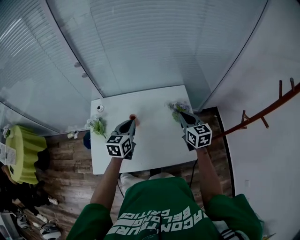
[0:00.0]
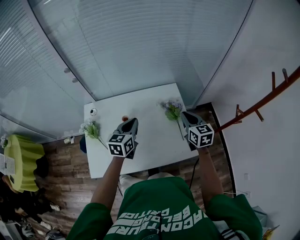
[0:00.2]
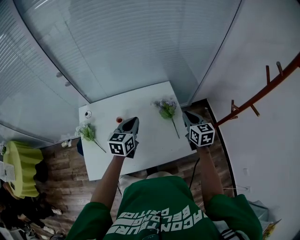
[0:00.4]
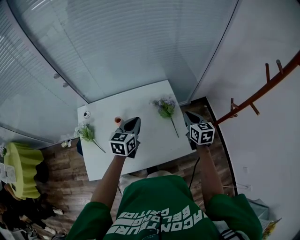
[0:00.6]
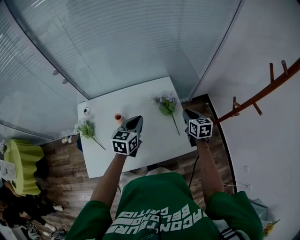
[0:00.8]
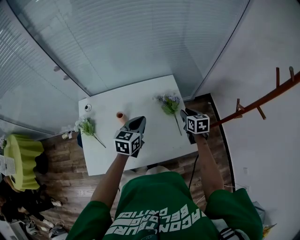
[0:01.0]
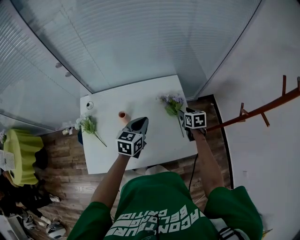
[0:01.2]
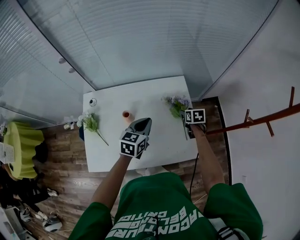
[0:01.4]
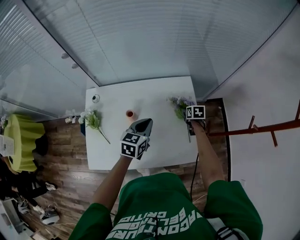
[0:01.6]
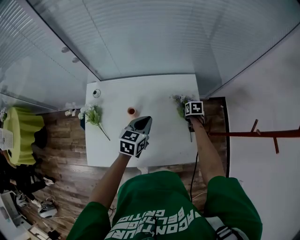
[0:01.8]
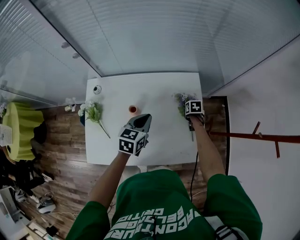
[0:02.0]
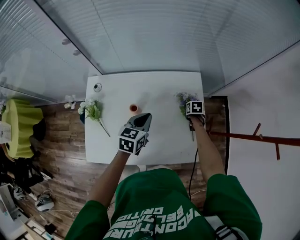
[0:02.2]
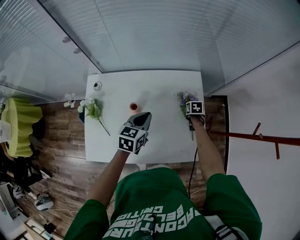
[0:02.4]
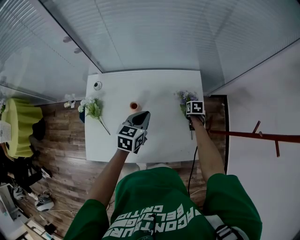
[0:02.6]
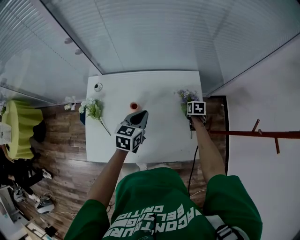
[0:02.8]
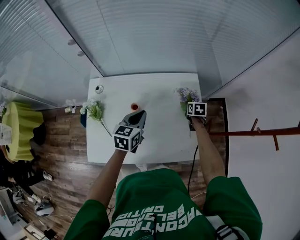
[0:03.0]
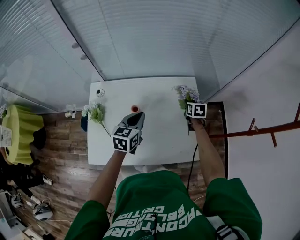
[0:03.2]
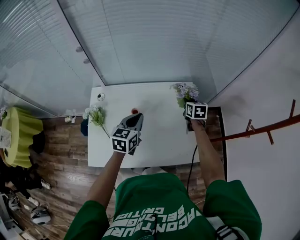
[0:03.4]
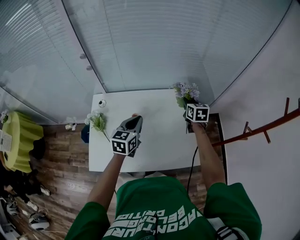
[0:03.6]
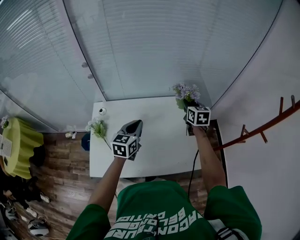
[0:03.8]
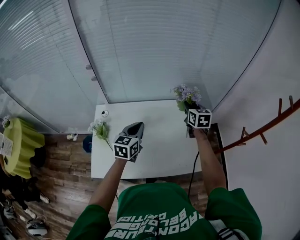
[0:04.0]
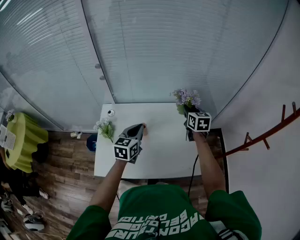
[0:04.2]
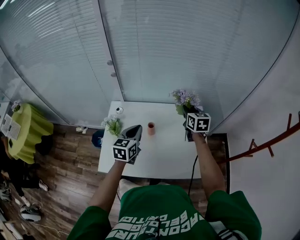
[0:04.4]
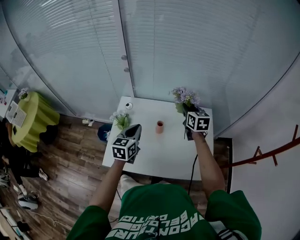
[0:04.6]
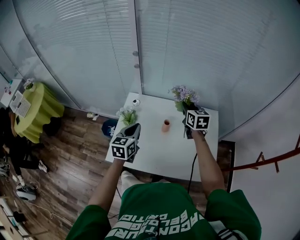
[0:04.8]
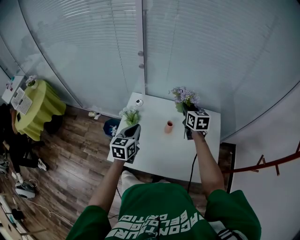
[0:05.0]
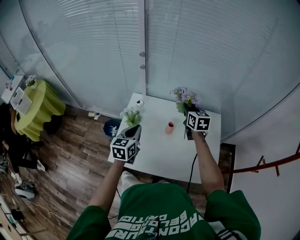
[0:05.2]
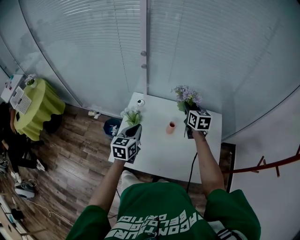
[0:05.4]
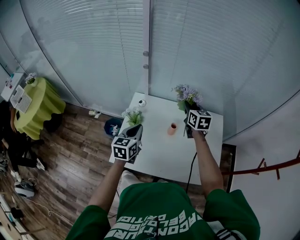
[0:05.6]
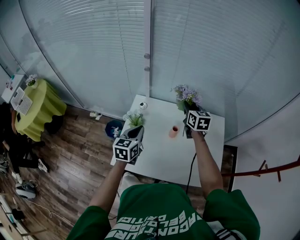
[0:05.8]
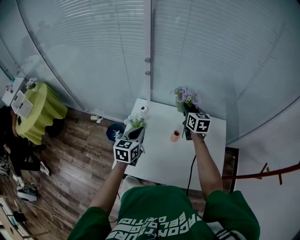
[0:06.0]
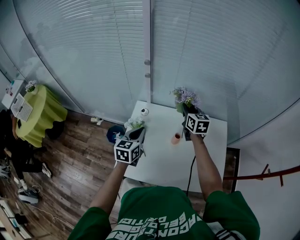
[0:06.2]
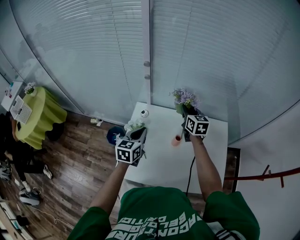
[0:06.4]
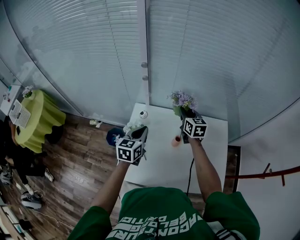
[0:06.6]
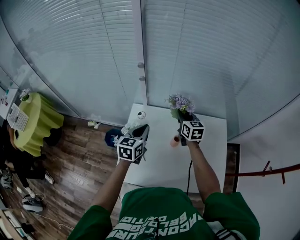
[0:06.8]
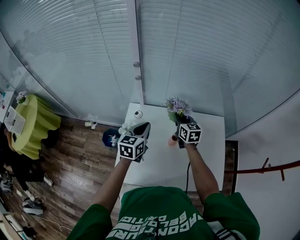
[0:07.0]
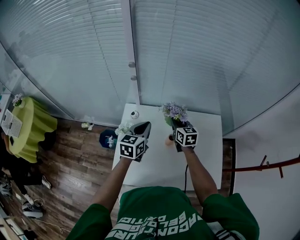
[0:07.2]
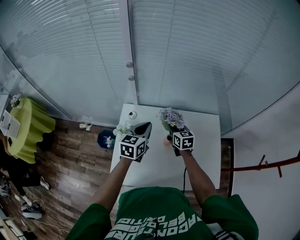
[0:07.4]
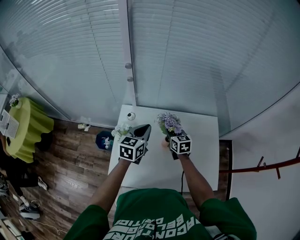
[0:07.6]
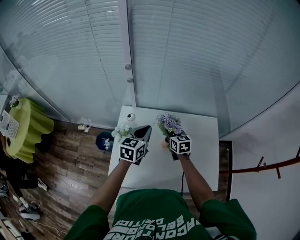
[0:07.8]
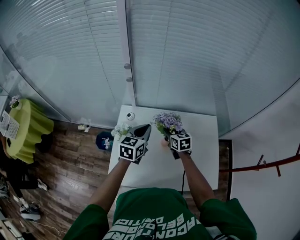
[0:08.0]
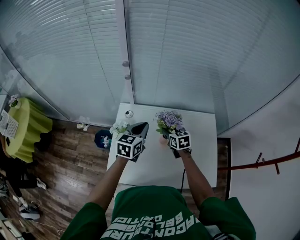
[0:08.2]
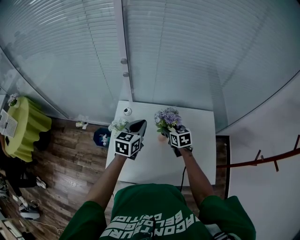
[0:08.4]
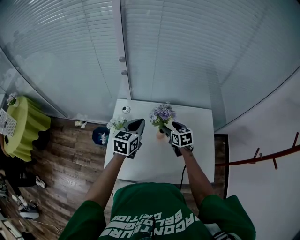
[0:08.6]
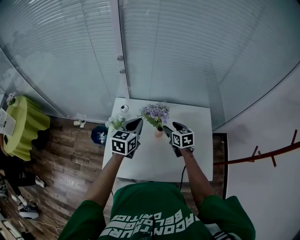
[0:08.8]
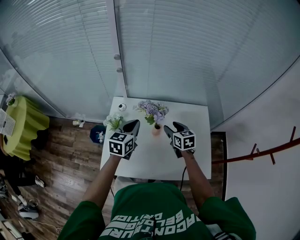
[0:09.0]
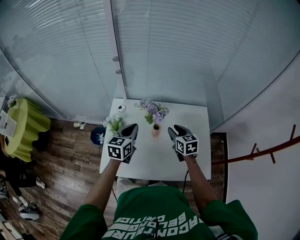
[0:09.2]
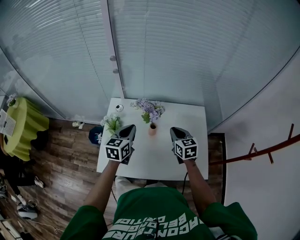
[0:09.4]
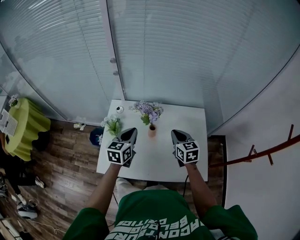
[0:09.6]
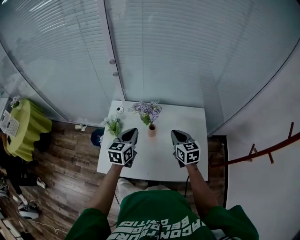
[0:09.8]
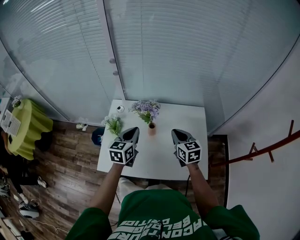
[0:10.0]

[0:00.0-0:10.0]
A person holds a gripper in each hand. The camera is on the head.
0:00.0 to 0:01.4: The right gripper heads downward, forward and to the right, covering roughly 25 cm, angles its fingers downward, by some 30 degrees, and opens, while the left gripper moves to the right, about 10 cm.
0:01.4 to 0:02.8: The right gripper heads downward, covering roughly 5 cm, and closes its fingers; the left gripper moves to the left, about 5 cm.
0:02.8 to 0:04.2: The right gripper shifts roughly 30 cm upward, and angles its fingers upward, by approximately 40 degrees, while the left gripper is displaced upward, to the left and backward by roughly 15 cm.
0:04.2 to 0:05.8: The two grippers go roughly 20 cm to the left.
0:05.8 to 0:07.2: The right gripper moves downward, approximately 10 cm. The left gripper goes some 10 cm forward and to the right.
0:07.2 to 0:08.6: The right gripper travels backward by roughly 5 cm, and opens up.
0:08.6 to 0:10.0: The left gripper shifts some 10 cm backward and to the right. The right gripper moves backward, upward and to the right, roughly 20 cm, and closes up.

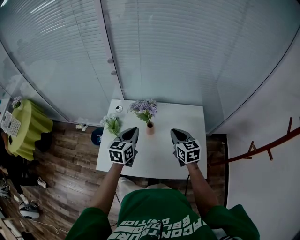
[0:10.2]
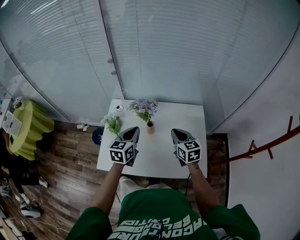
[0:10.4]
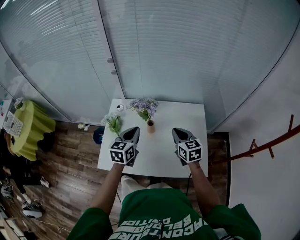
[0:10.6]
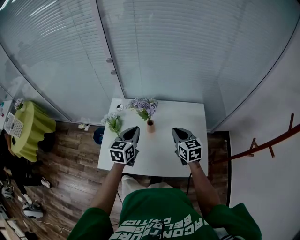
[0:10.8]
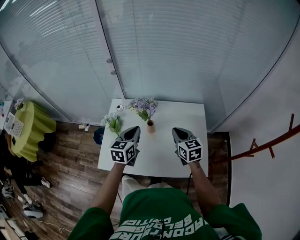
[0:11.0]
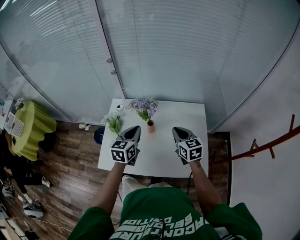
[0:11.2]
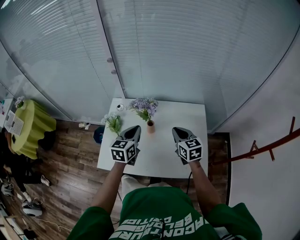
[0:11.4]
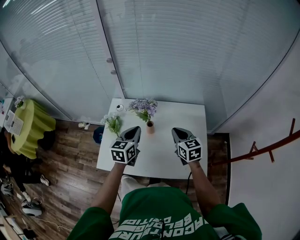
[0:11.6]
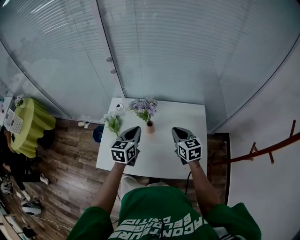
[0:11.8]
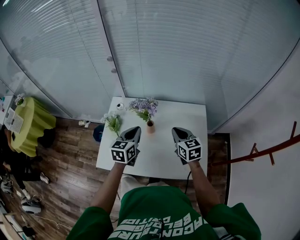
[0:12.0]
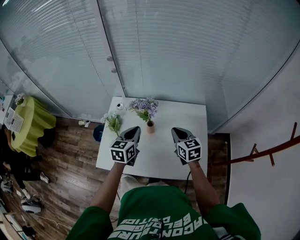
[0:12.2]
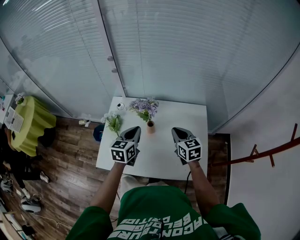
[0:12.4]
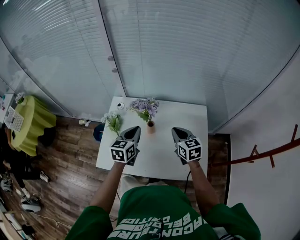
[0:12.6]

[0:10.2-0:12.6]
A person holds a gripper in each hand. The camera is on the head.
0:10.2 to 0:12.6: There are only small adjustments of the grippers.

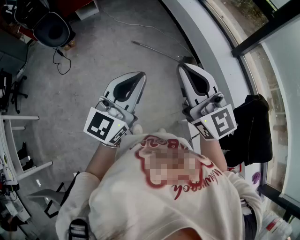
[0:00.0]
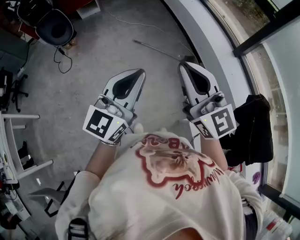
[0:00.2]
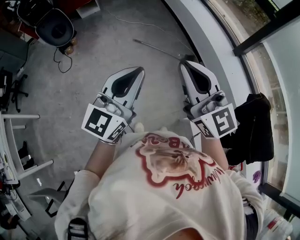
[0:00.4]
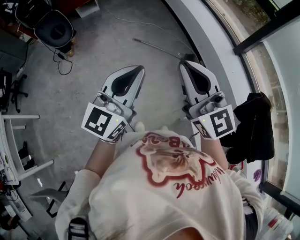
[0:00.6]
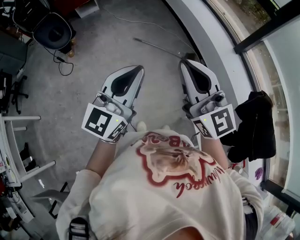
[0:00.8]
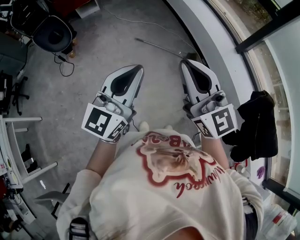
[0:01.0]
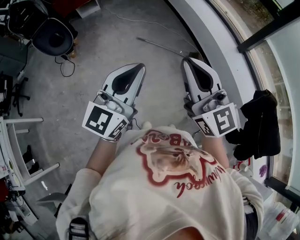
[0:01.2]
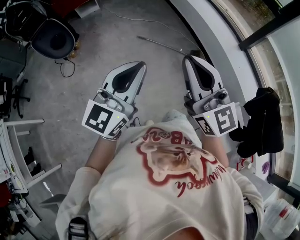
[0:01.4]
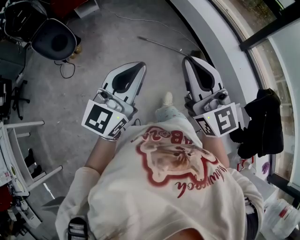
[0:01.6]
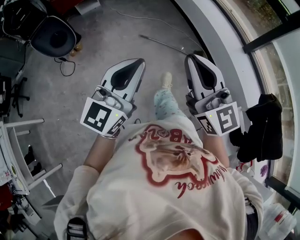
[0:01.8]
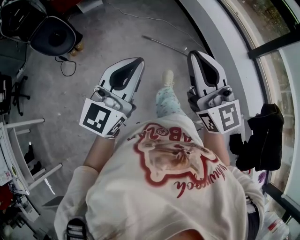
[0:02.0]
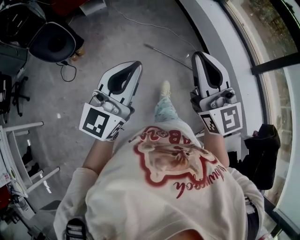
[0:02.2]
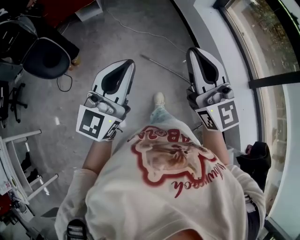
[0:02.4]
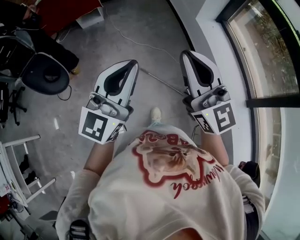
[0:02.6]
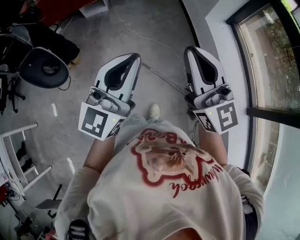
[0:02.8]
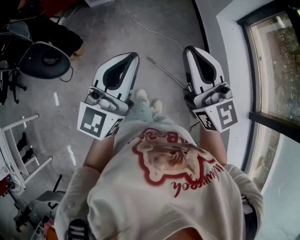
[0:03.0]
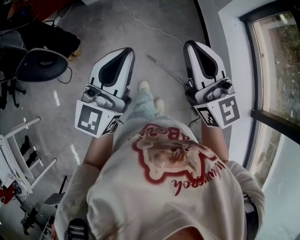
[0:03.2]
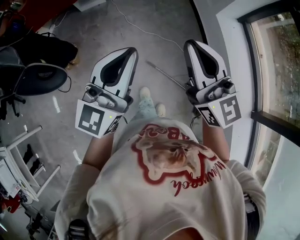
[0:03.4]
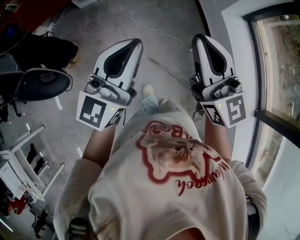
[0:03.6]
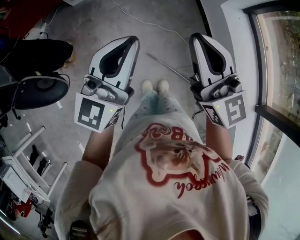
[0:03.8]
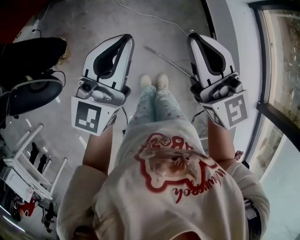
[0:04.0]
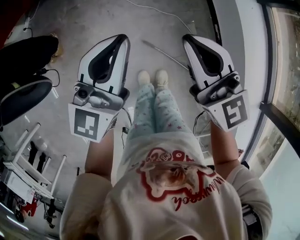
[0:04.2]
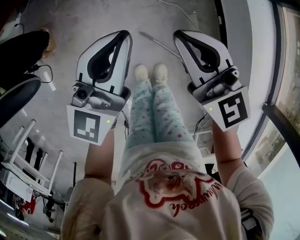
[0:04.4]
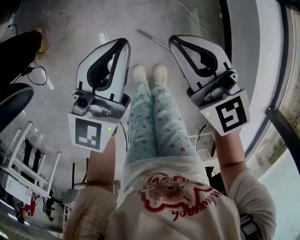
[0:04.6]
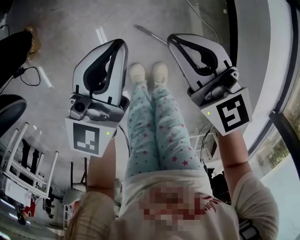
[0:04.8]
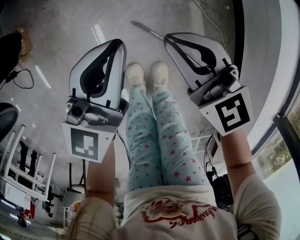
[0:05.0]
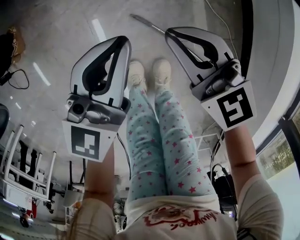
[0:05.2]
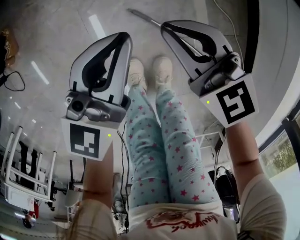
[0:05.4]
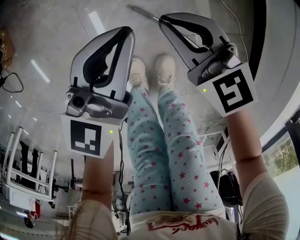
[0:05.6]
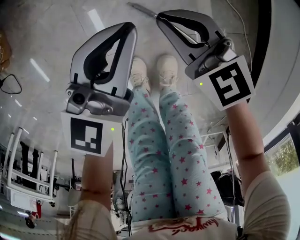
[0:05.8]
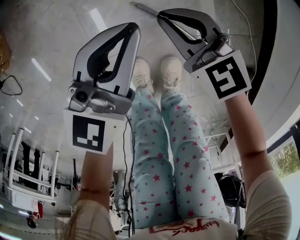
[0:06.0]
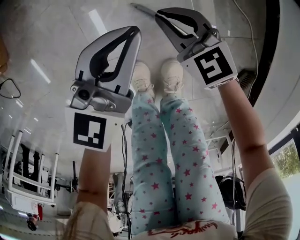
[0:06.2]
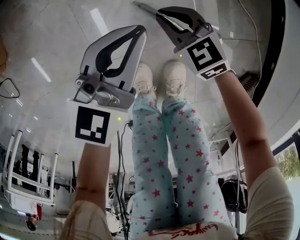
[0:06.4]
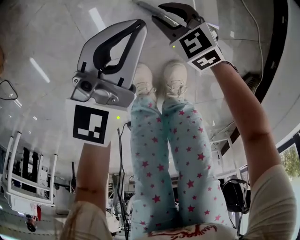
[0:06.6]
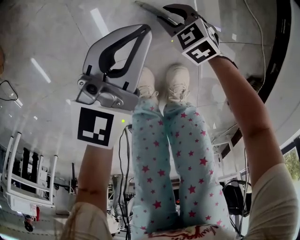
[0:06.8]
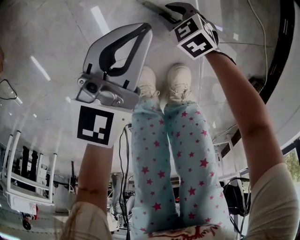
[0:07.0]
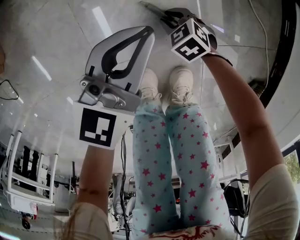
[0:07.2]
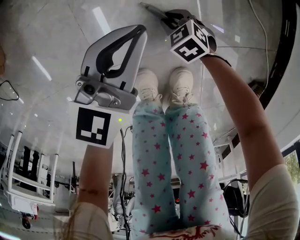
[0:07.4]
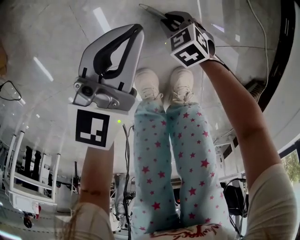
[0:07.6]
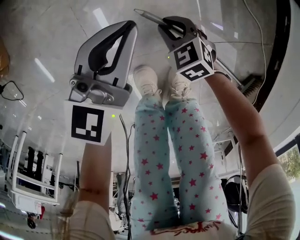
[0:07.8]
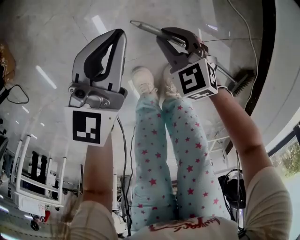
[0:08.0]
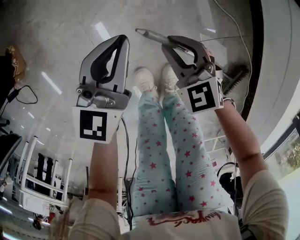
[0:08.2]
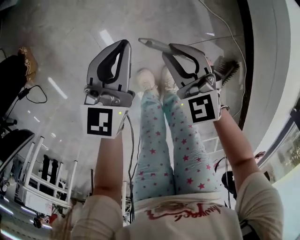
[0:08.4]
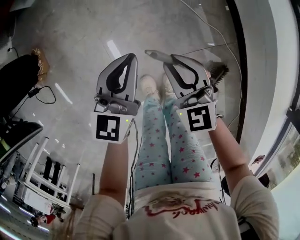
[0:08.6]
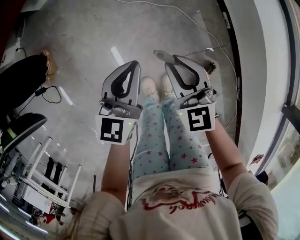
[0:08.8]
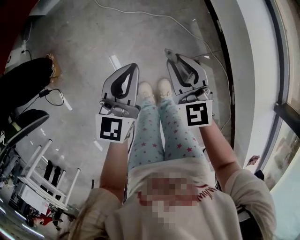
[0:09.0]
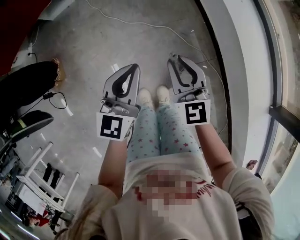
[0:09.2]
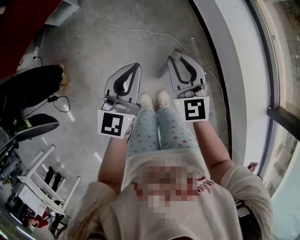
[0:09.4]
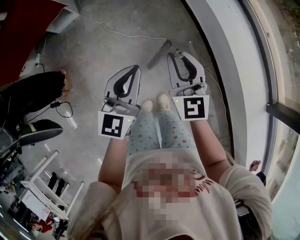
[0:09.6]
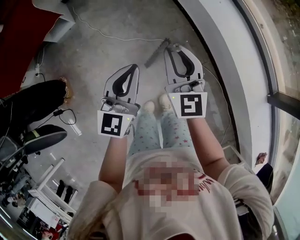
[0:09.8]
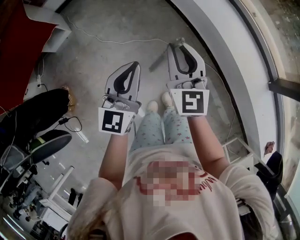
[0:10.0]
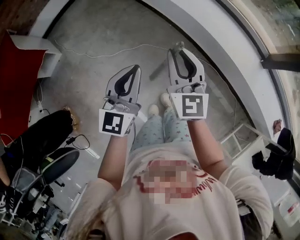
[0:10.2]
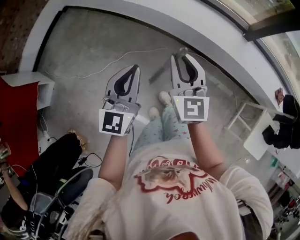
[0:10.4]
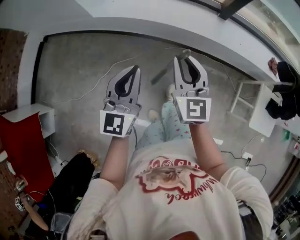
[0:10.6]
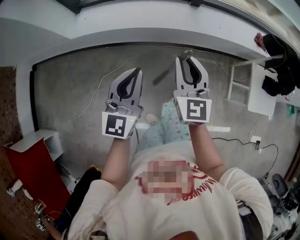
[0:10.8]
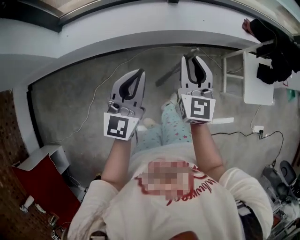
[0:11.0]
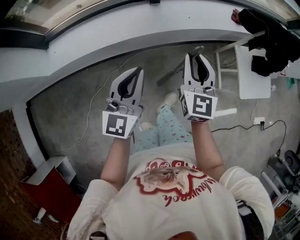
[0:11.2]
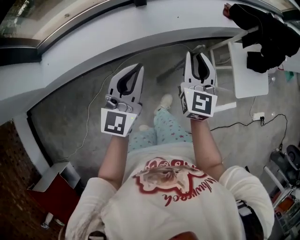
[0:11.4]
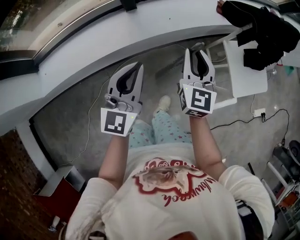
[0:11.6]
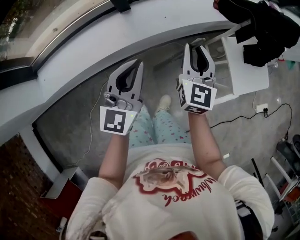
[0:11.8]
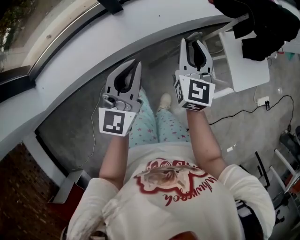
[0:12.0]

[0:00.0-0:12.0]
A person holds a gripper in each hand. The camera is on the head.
0:00.0 to 0:01.6: Both grippers move to the left, roughly 10 cm.
0:01.6 to 0:03.0: The pair of grippers is taken forward, about 60 cm. The left gripper turns by some 20 degrees.
0:03.0 to 0:04.4: The right gripper goes about 40 cm downward and forward. The left gripper goes roughly 40 cm forward and downward.
0:04.4 to 0:06.0: Both grippers move downward, some 50 cm. The right gripper turns by about 20 degrees.
0:06.0 to 0:07.6: The right gripper moves downward, some 25 cm, and tips its fingers downward by approximately 30 degrees. The left gripper moves downward, some 10 cm.
0:07.6 to 0:09.0: The grippers both shift upward by approximately 50 cm. The right gripper tips its fingers upward by approximately 40 degrees.
0:09.0 to 0:10.4: The left gripper changes place by approximately 25 cm, and swivels some 40 degrees. Meanwhile the right gripper shifts by approximately 30 cm, and turns by approximately 60 degrees.
0:10.4 to 0:12.0: The two grippers travel together, approximately 60 cm. The right gripper swivels roughly 60 degrees; the left gripper swivels some 50 degrees.
